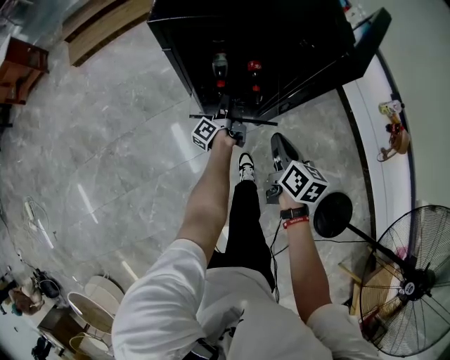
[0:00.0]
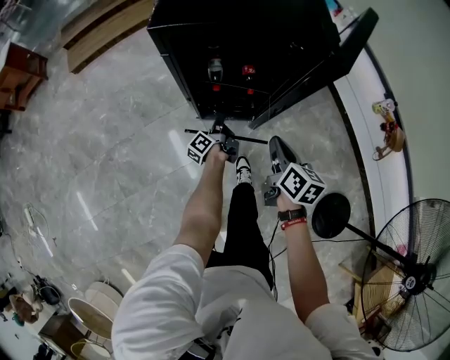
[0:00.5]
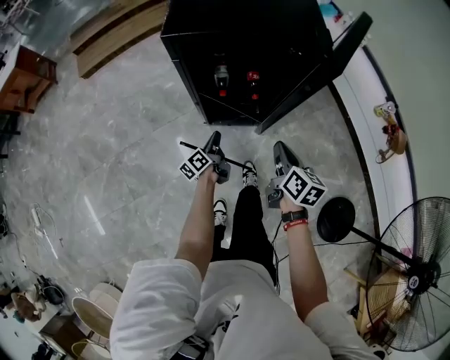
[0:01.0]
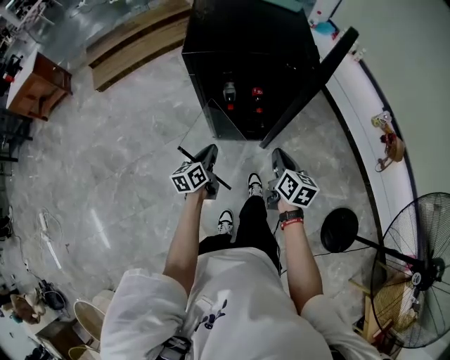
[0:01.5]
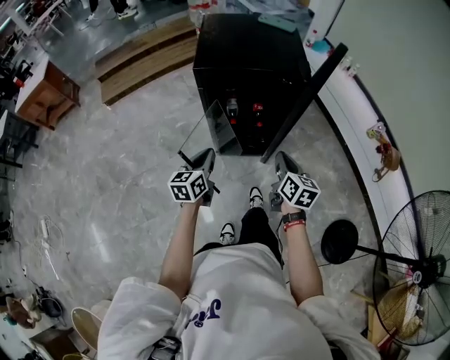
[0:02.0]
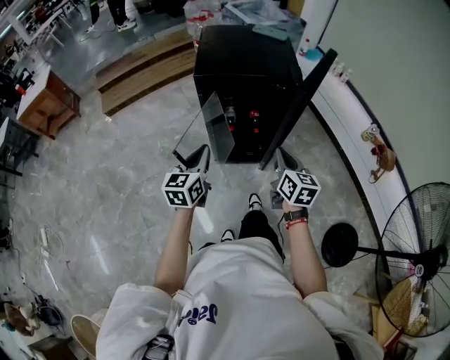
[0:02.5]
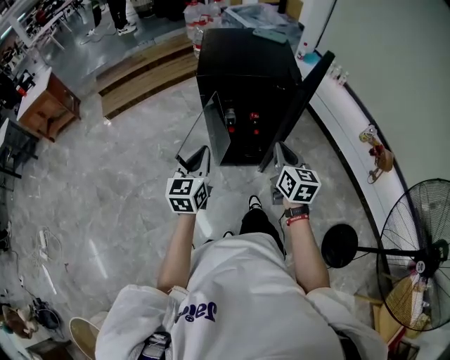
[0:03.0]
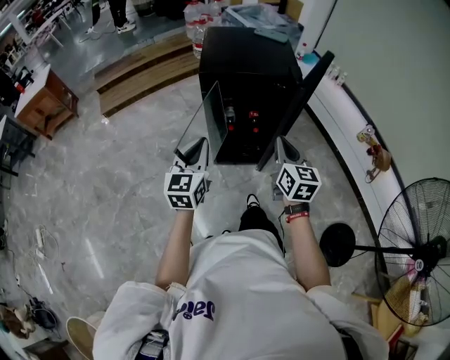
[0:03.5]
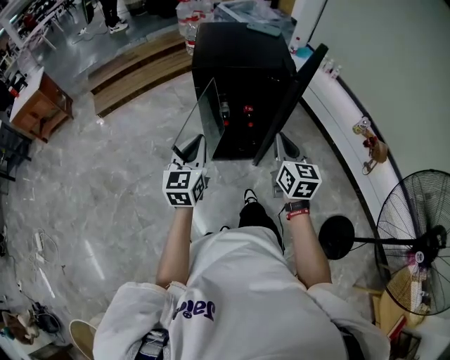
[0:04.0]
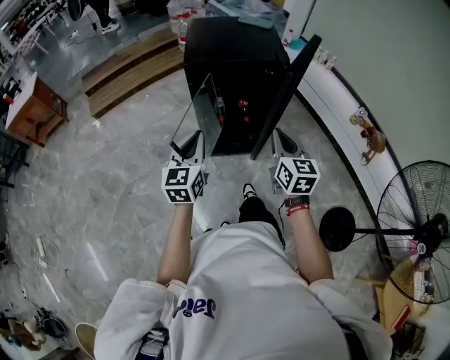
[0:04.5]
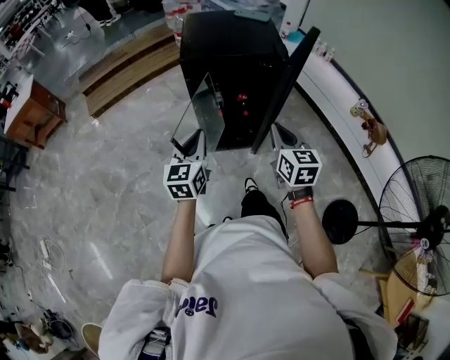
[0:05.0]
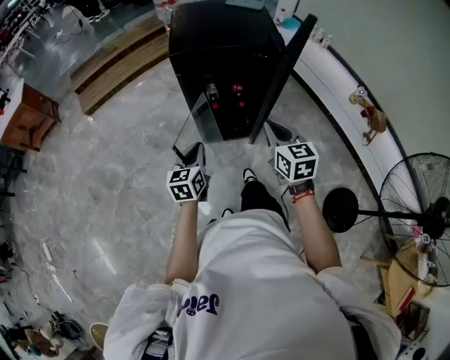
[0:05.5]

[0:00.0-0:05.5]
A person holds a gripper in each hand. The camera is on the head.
0:00.0 to 0:02.0: The right gripper shifts about 15 cm upward and backward; the left gripper moves upward and backward, some 35 cm, and twists roughly 70 degrees clockwise, seen from behind.
0:02.0 to 0:03.5: Both grippers move upward, about 15 cm. The left gripper changes its angle by about 30 degrees. Meanwhile the right gripper turns by approximately 20 degrees.
0:03.5 to 0:05.5: The left gripper moves downward, some 15 cm.

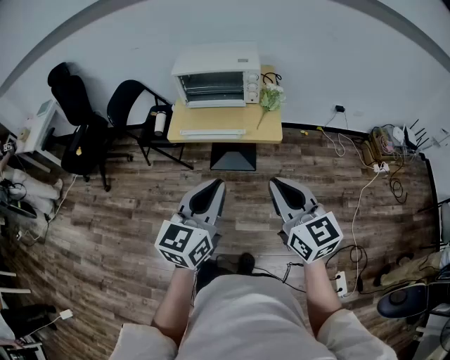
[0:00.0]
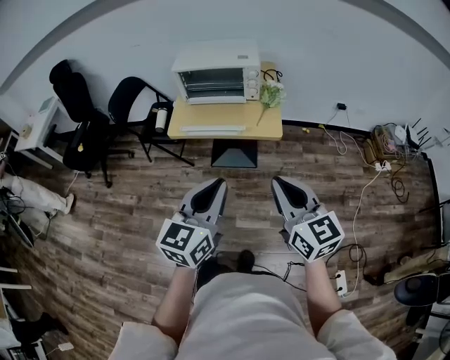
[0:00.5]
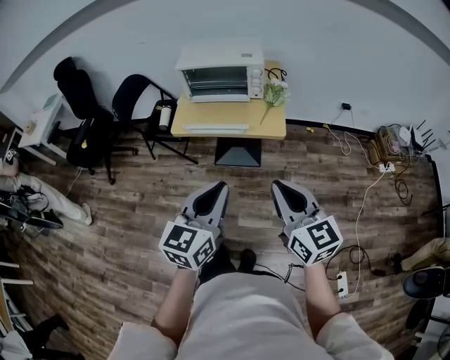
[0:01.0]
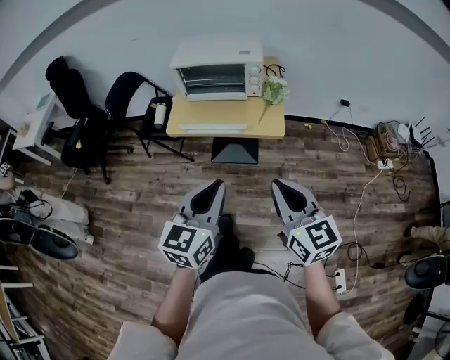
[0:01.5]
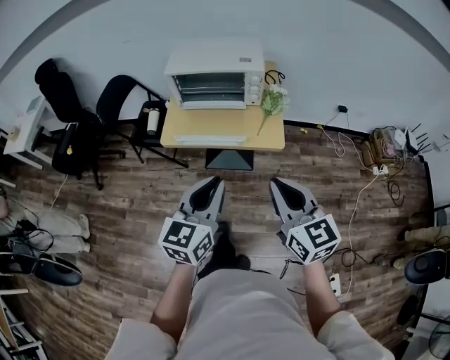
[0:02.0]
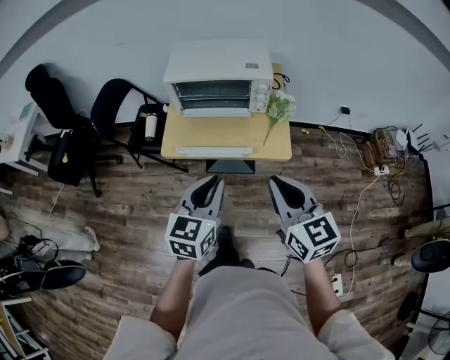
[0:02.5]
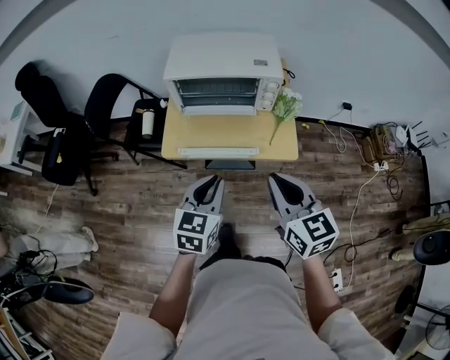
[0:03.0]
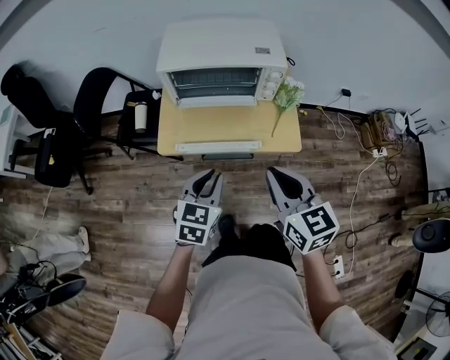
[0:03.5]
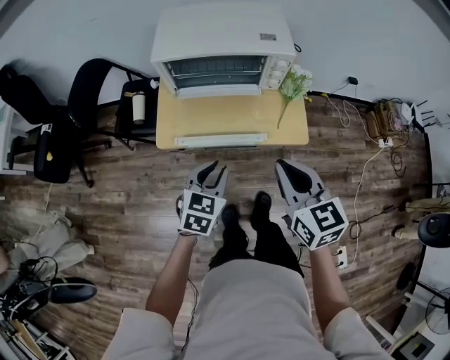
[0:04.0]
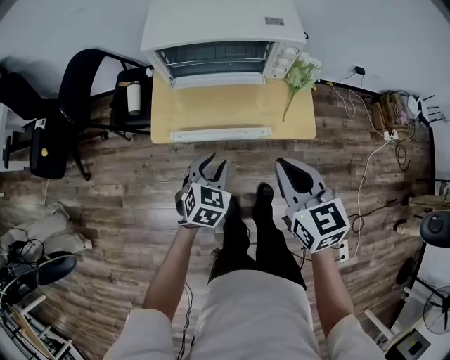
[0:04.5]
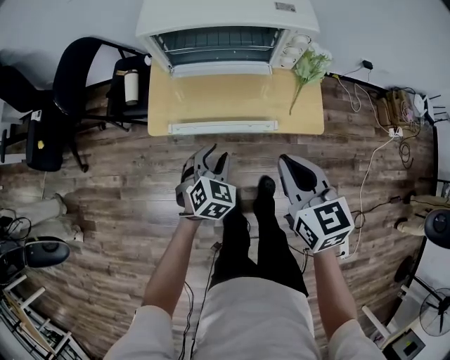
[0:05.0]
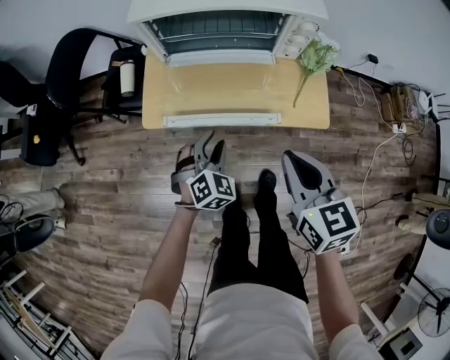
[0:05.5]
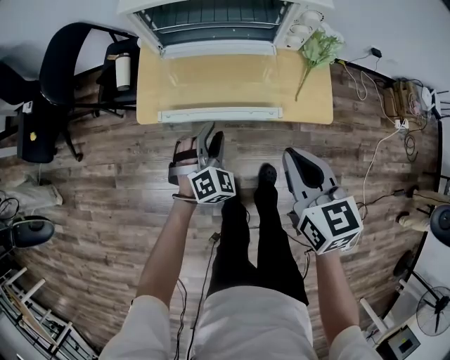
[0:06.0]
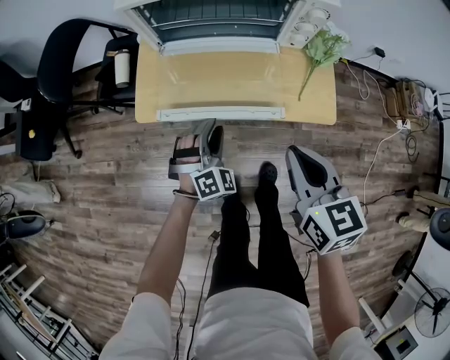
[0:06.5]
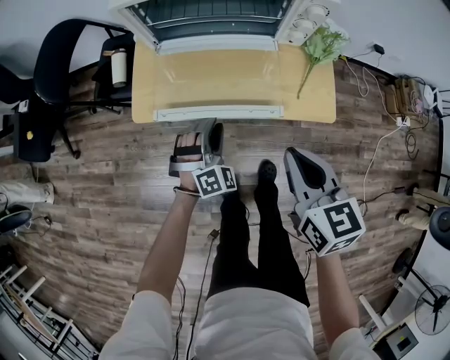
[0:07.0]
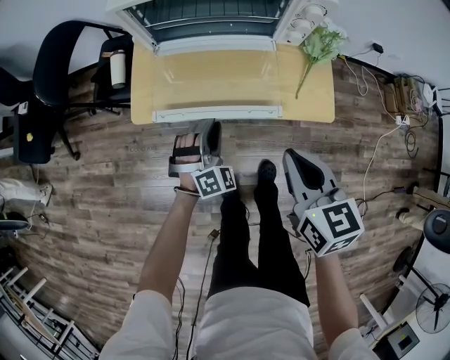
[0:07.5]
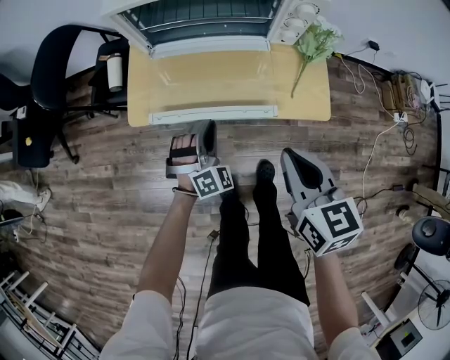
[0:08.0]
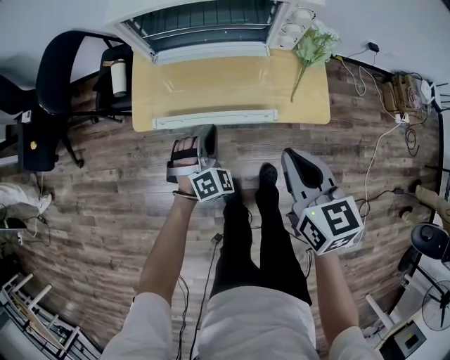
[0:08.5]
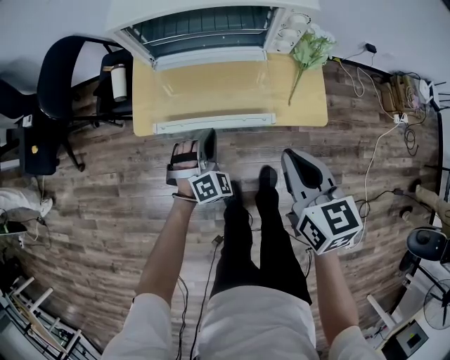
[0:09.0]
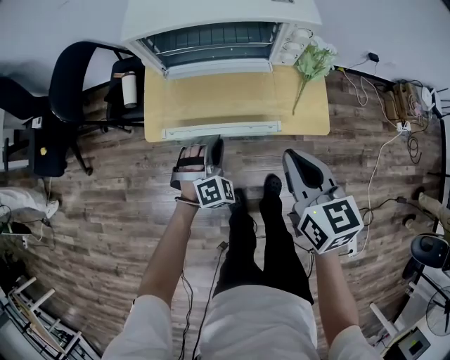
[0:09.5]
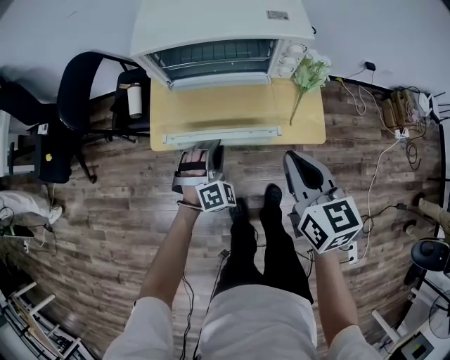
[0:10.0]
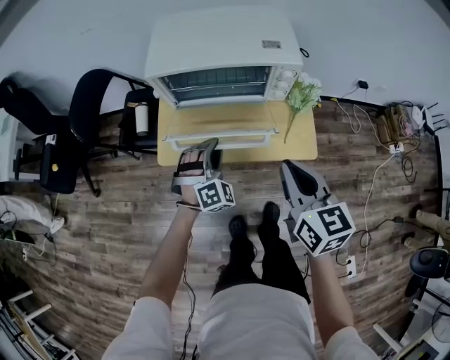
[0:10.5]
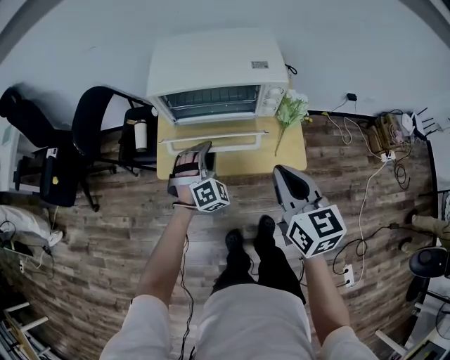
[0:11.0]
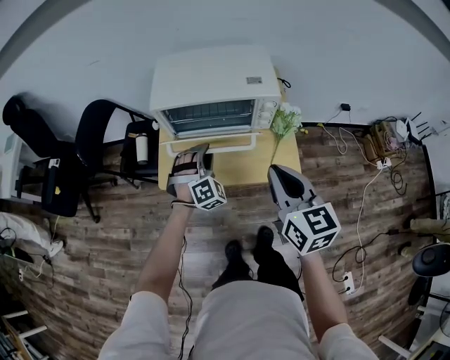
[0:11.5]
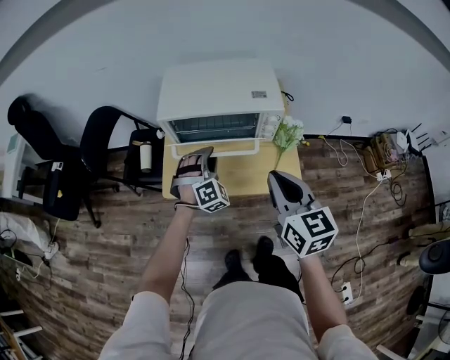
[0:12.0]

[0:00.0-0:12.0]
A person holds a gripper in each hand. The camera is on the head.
0:00.0 to 0:02.0: Both grippers travel together forward, approximately 10 cm.
0:02.0 to 0:04.0: The left gripper goes approximately 30 cm downward, forward and to the left, and swivels some 30 degrees. The right gripper goes about 20 cm forward, downward and to the left.
0:04.0 to 0:06.0: Both grippers travel together downward, roughly 15 cm. The left gripper rolls clockwise, seen from behind, by approximately 40 degrees.
0:06.0 to 0:08.0: The grippers move only a little.
0:08.0 to 0:10.0: Both grippers move upward, approximately 5 cm.
0:10.0 to 0:12.0: The left gripper shifts roughly 15 cm upward and forward, while the right gripper moves upward, roughly 15 cm.

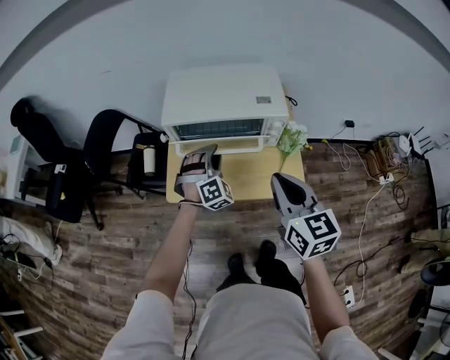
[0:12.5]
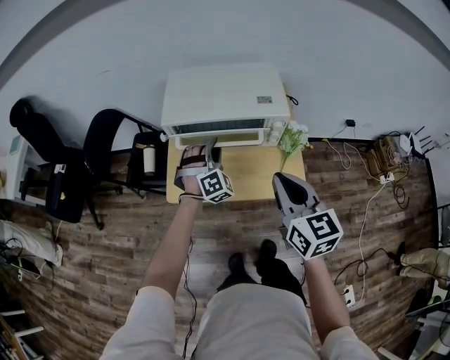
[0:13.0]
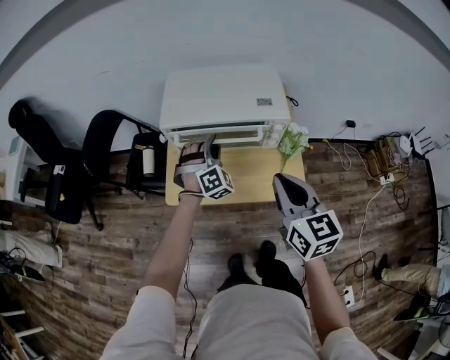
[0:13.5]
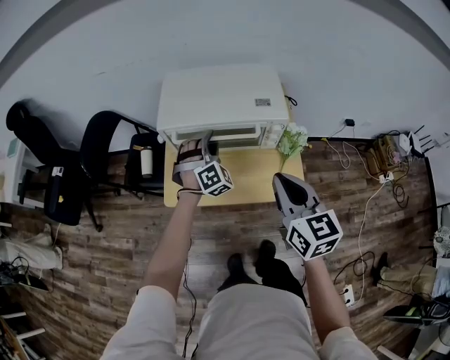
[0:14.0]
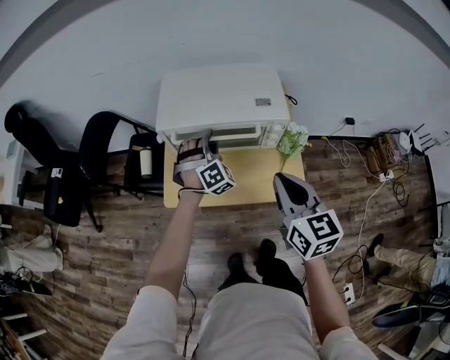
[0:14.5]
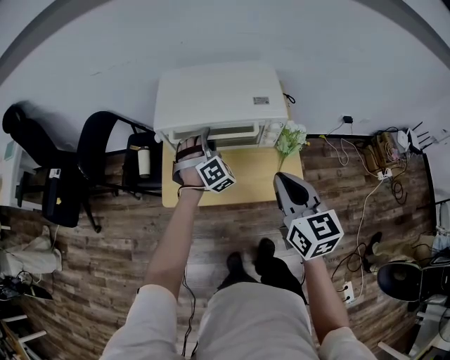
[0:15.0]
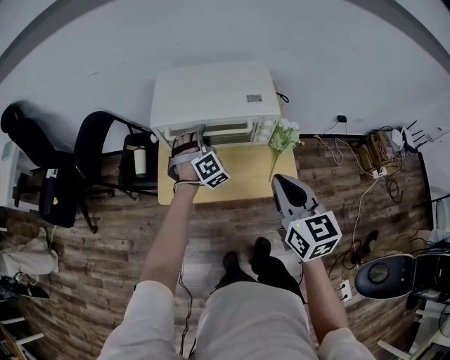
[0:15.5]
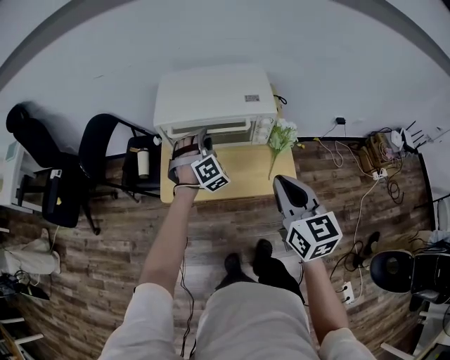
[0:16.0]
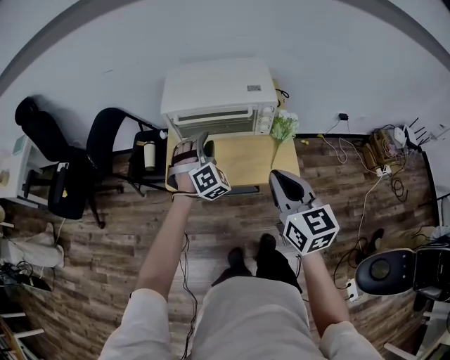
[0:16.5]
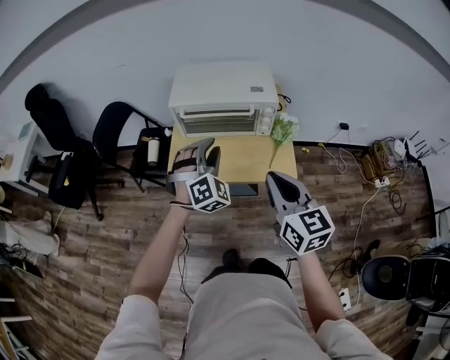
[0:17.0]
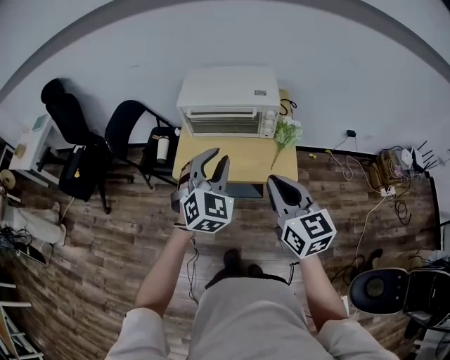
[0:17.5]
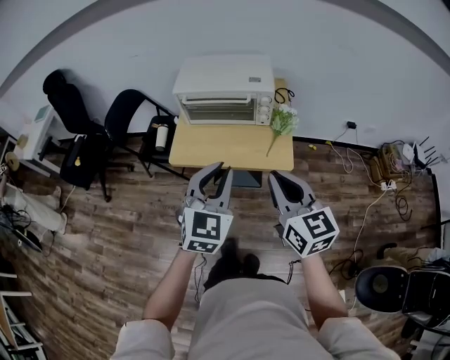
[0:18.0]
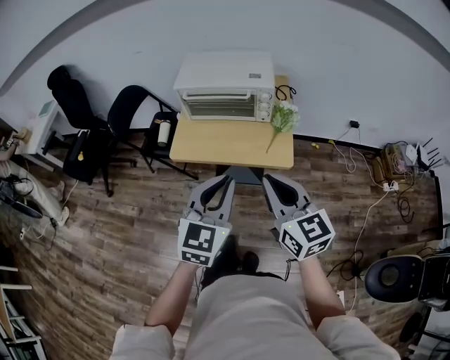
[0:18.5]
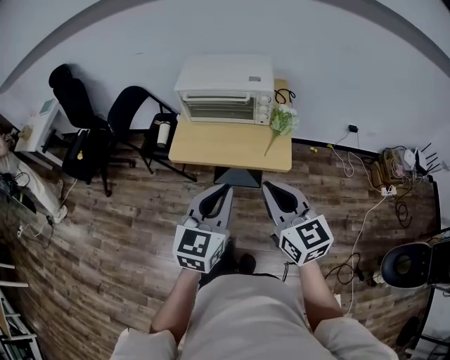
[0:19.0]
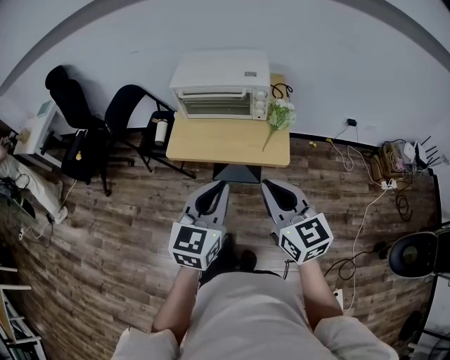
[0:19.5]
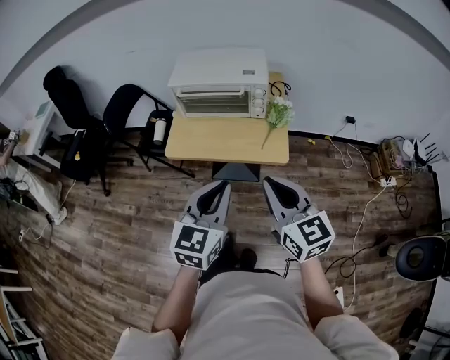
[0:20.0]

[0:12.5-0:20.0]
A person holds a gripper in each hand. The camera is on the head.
0:12.5 to 0:14.5: The left gripper travels forward by about 5 cm.
0:14.5 to 0:16.5: Both grippers move backward, roughly 10 cm.
0:16.5 to 0:18.0: The right gripper goes roughly 10 cm backward, while the left gripper shifts approximately 30 cm backward and upward, and twists approximately 50 degrees counterclockwise, seen from behind.
0:18.0 to 0:20.0: The left gripper moves backward, some 5 cm.

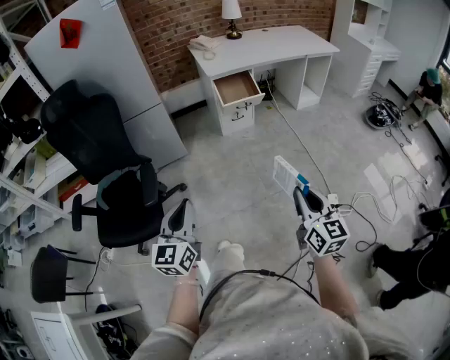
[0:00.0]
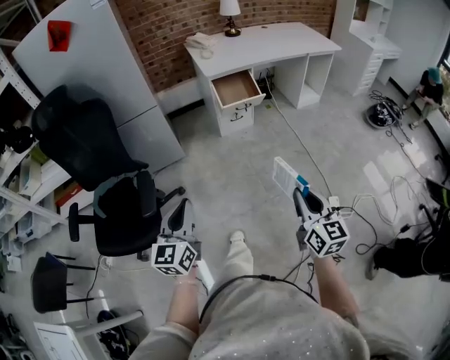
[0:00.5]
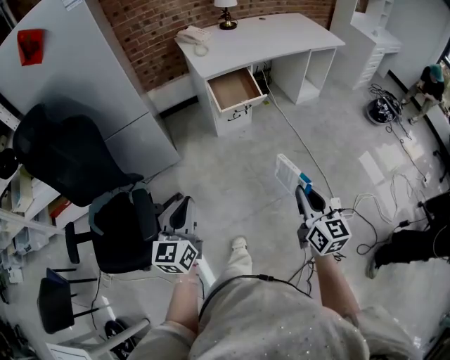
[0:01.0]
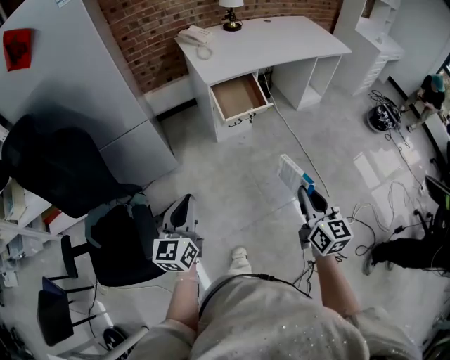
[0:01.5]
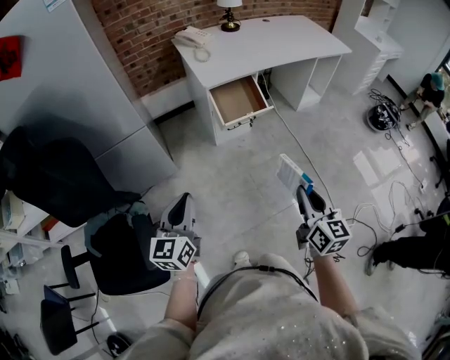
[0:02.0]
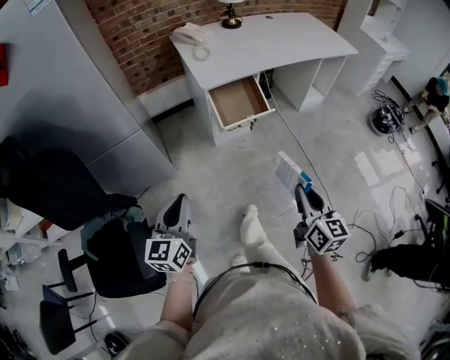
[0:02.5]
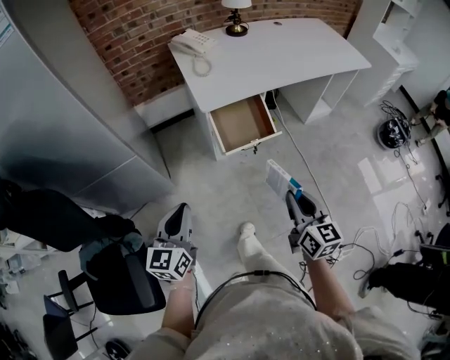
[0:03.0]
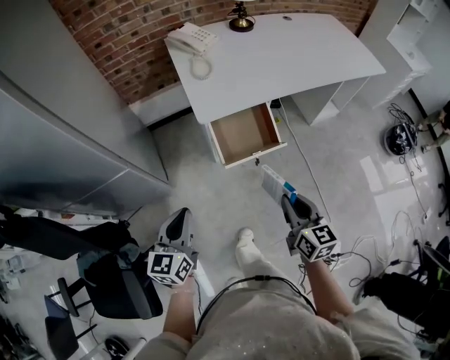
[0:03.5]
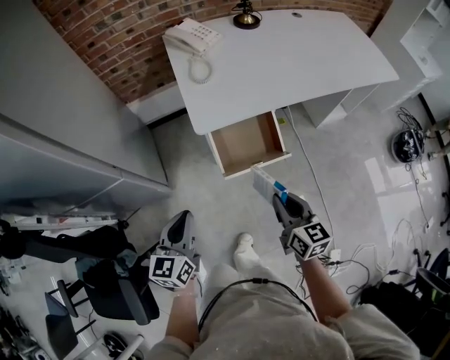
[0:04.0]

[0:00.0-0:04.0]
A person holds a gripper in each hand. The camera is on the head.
0:00.0 to 0:02.0: Both grippers move forward, roughly 30 cm.
0:02.0 to 0:04.0: The grippers both shift forward by approximately 35 cm.
